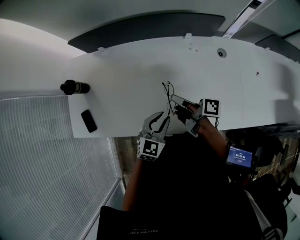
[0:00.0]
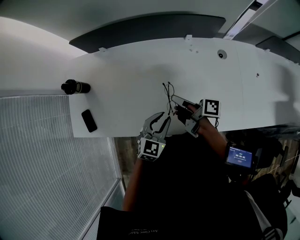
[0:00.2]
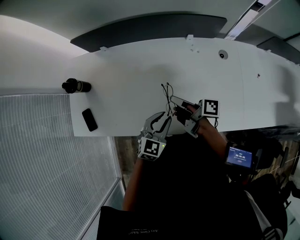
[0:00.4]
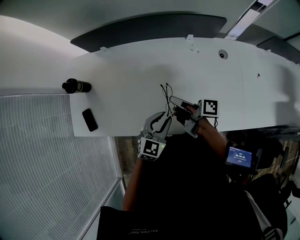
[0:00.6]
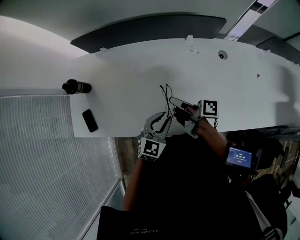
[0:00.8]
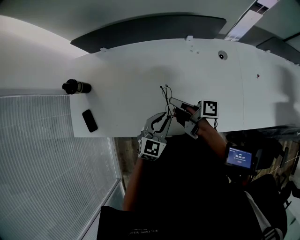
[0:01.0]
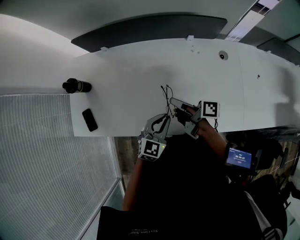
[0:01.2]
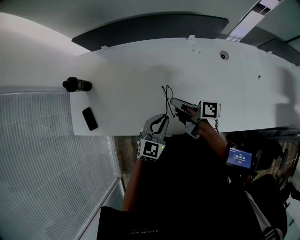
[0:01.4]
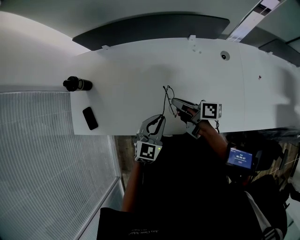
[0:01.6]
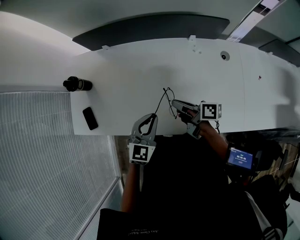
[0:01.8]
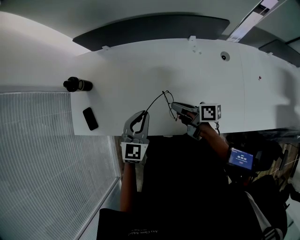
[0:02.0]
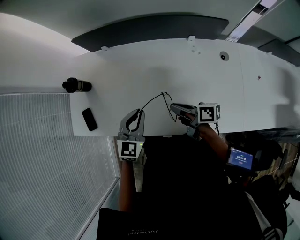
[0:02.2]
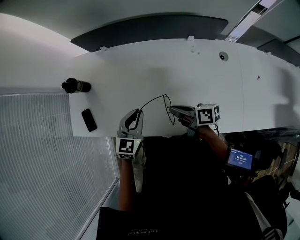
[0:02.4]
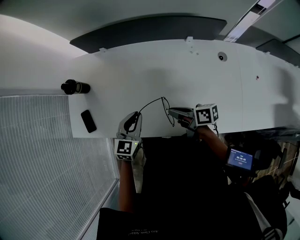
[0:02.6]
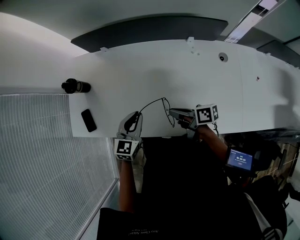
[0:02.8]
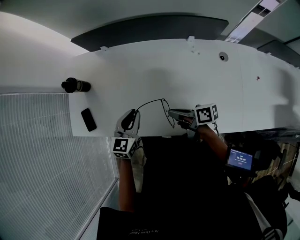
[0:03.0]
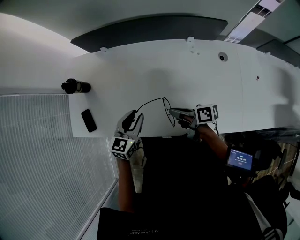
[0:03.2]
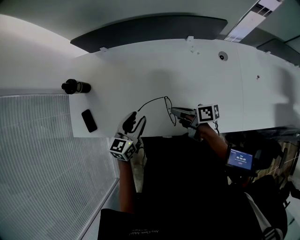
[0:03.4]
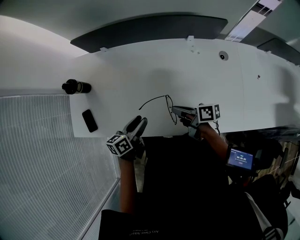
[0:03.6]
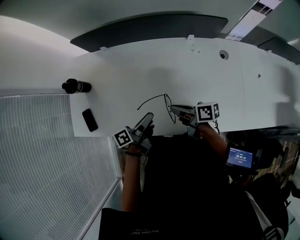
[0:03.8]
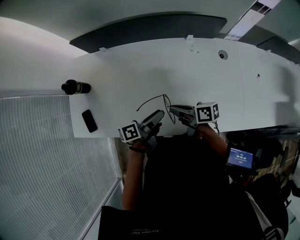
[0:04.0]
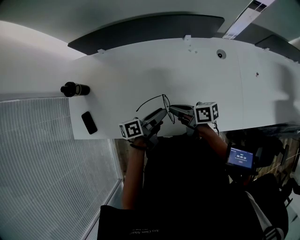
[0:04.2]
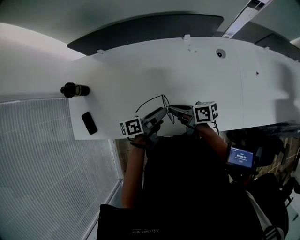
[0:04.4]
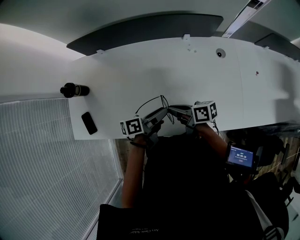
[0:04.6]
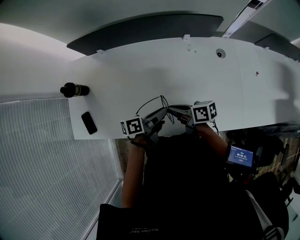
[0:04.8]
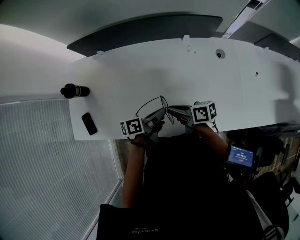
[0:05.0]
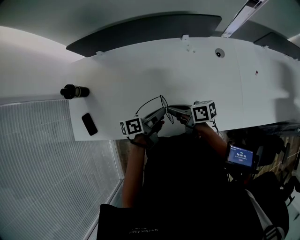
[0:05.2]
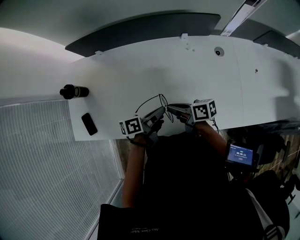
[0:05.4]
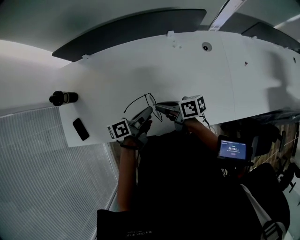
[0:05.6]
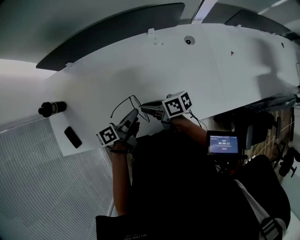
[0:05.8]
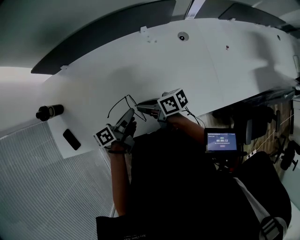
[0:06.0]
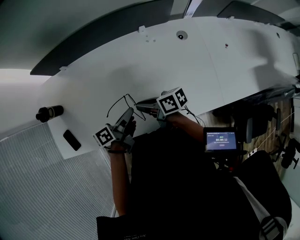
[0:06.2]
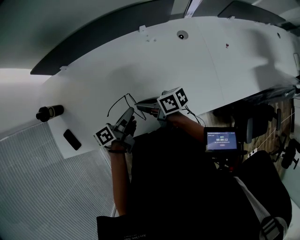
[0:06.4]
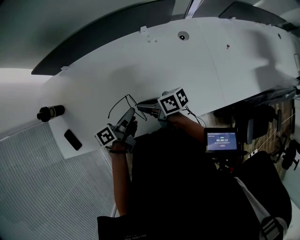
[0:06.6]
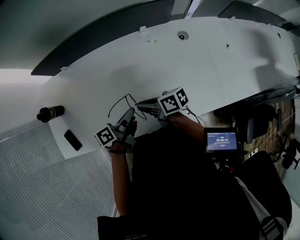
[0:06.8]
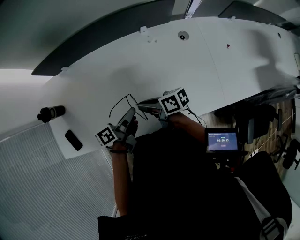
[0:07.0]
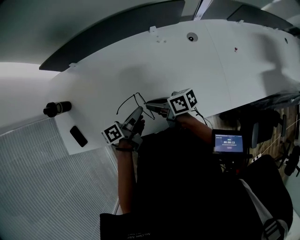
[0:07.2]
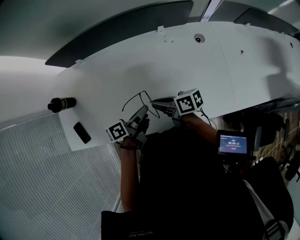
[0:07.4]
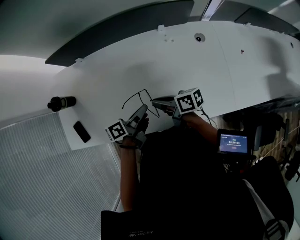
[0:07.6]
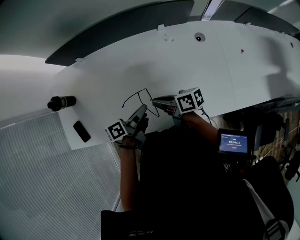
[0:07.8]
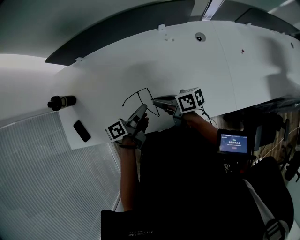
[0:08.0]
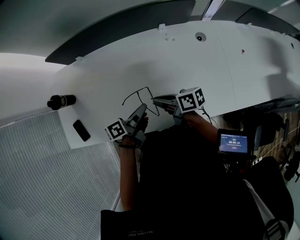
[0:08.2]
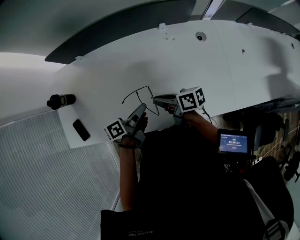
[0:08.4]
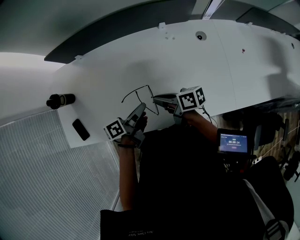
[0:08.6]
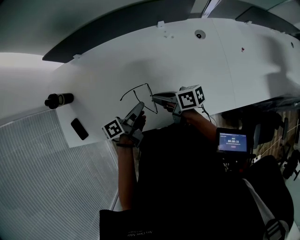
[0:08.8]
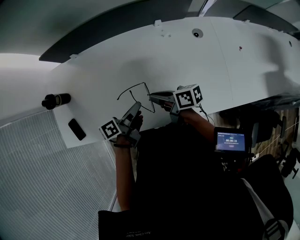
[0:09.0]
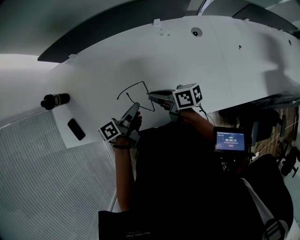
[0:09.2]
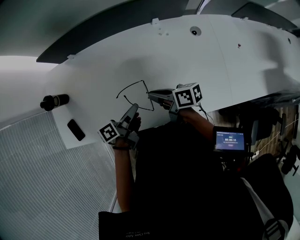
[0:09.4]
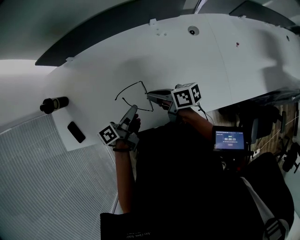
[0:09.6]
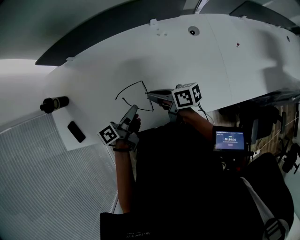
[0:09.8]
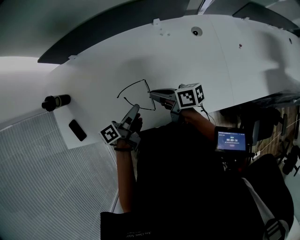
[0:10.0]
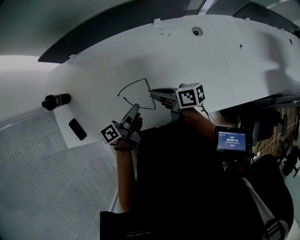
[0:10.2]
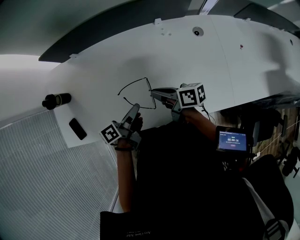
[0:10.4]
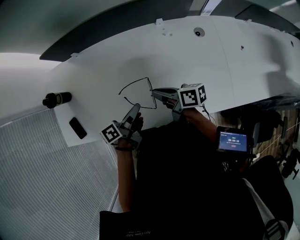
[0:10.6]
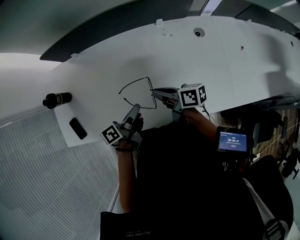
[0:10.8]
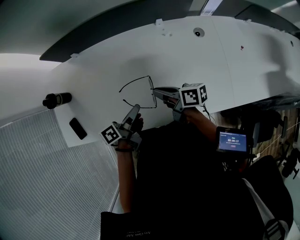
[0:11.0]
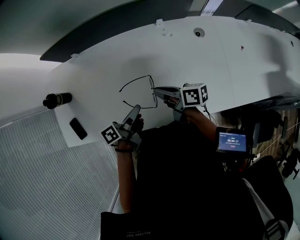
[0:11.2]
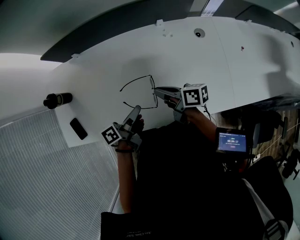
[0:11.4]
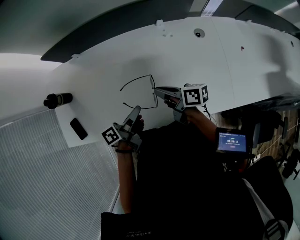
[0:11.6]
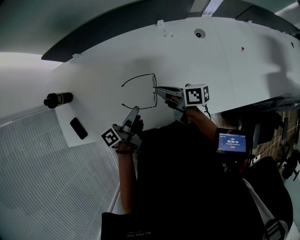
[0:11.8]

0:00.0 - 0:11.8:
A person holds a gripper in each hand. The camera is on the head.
0:01.4 - 0:03.0: The left gripper moves about 15 cm, and swivels about 20 degrees.
0:03.0 - 0:04.4: The left gripper changes place by roughly 15 cm, rotates around the line of its fingers by some 60 degrees, counterclockwise from behind, and opens up.
0:04.4 - 0:06.0: The left gripper closes its fingers.

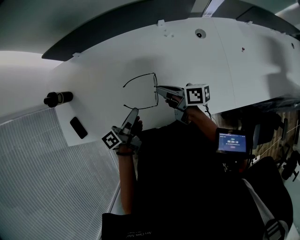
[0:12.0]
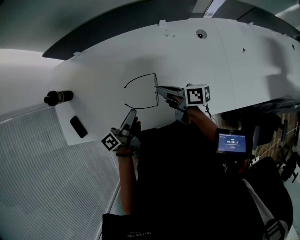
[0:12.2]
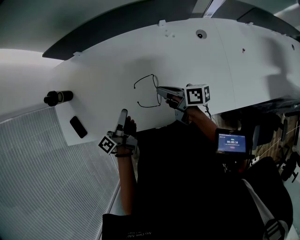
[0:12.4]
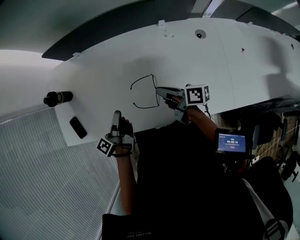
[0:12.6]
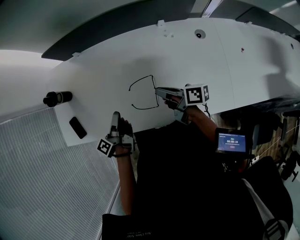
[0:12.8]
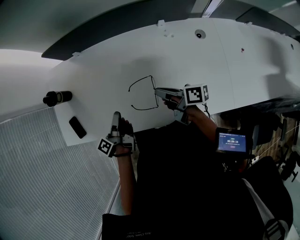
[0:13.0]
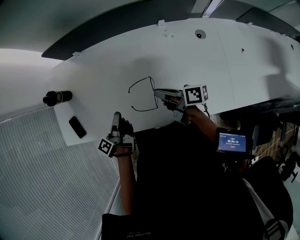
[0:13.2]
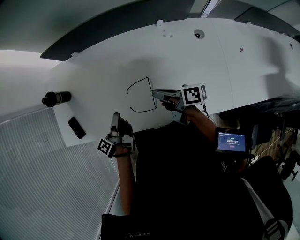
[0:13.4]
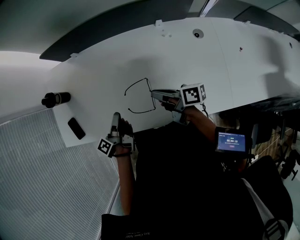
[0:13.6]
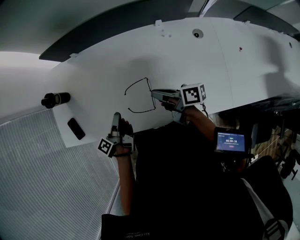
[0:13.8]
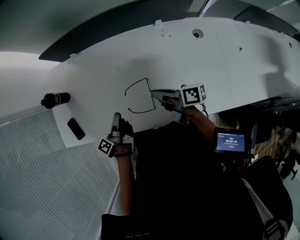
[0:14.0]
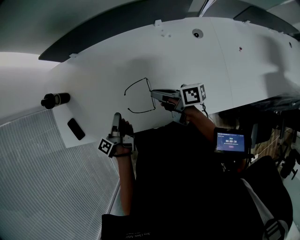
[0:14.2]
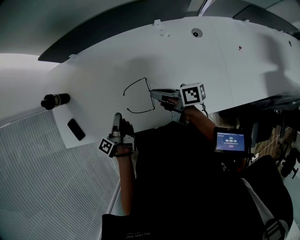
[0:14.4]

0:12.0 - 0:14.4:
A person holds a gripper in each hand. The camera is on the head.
0:12.0 - 0:13.2: The left gripper changes place by some 10 cm, and swivels roughly 30 degrees.

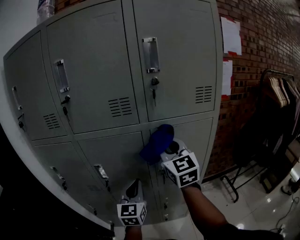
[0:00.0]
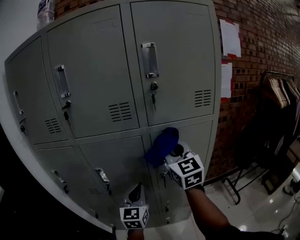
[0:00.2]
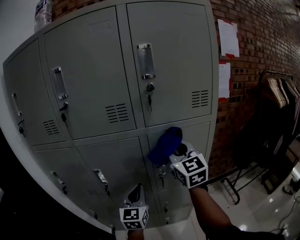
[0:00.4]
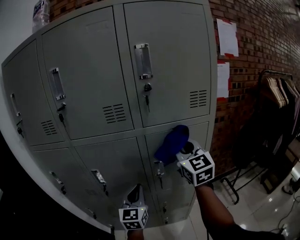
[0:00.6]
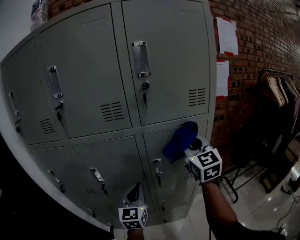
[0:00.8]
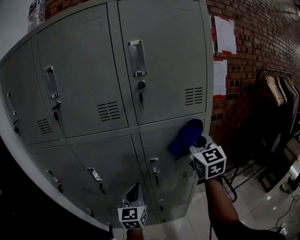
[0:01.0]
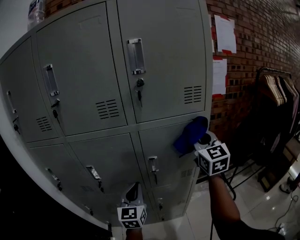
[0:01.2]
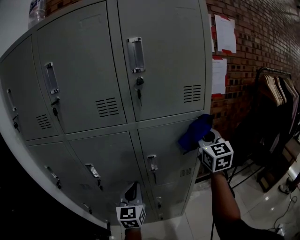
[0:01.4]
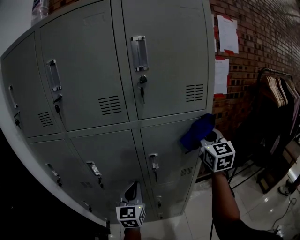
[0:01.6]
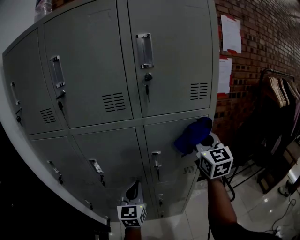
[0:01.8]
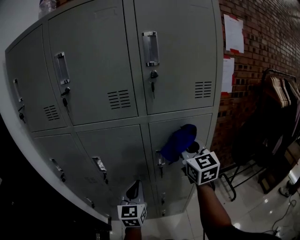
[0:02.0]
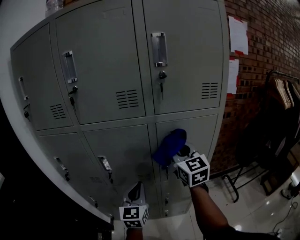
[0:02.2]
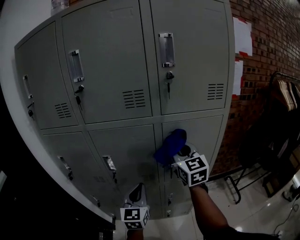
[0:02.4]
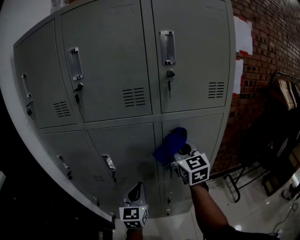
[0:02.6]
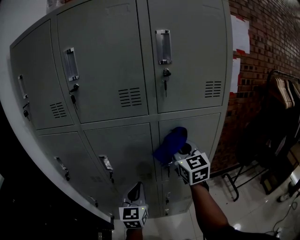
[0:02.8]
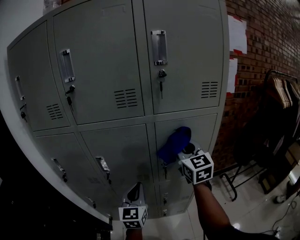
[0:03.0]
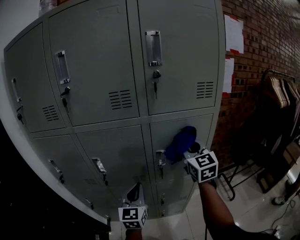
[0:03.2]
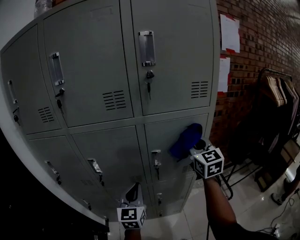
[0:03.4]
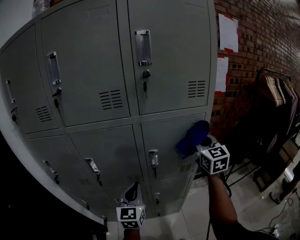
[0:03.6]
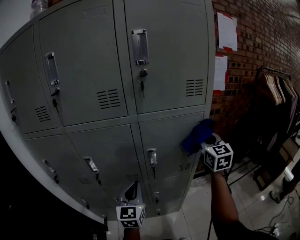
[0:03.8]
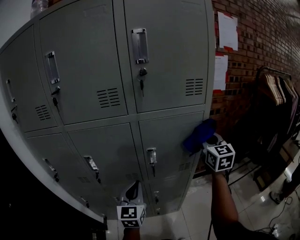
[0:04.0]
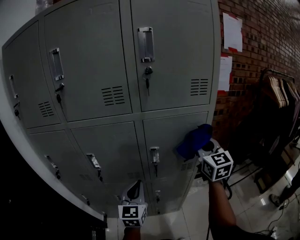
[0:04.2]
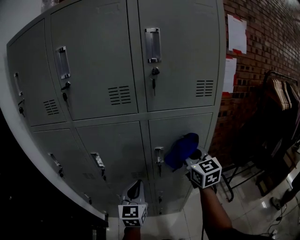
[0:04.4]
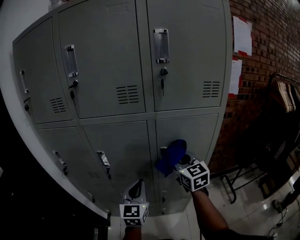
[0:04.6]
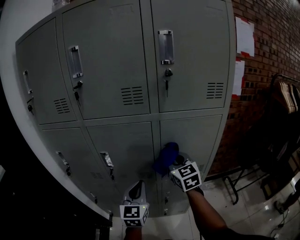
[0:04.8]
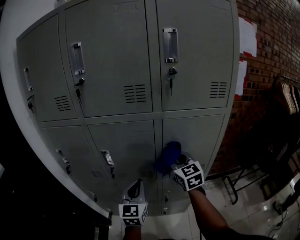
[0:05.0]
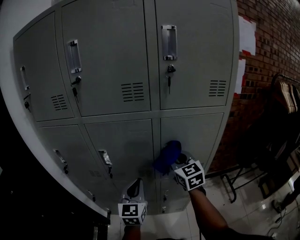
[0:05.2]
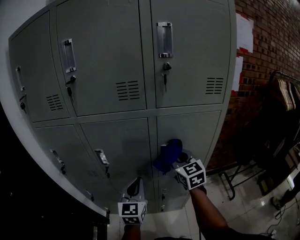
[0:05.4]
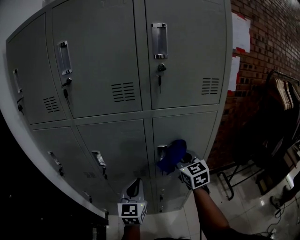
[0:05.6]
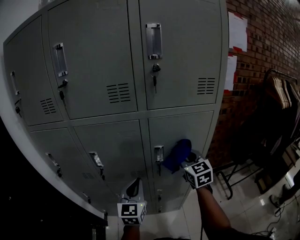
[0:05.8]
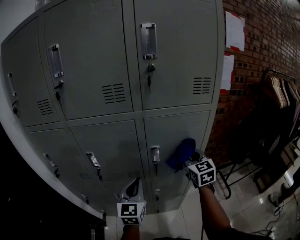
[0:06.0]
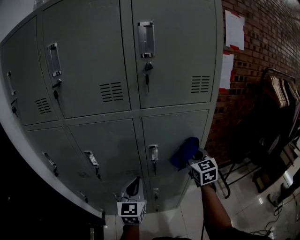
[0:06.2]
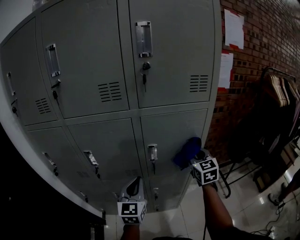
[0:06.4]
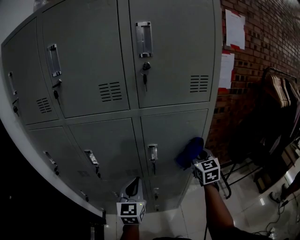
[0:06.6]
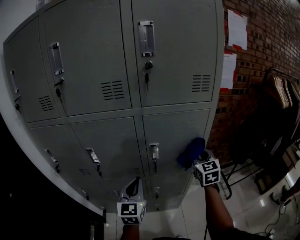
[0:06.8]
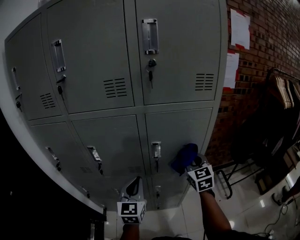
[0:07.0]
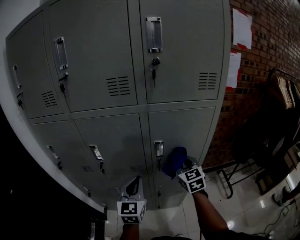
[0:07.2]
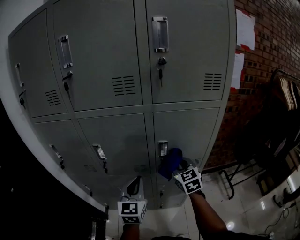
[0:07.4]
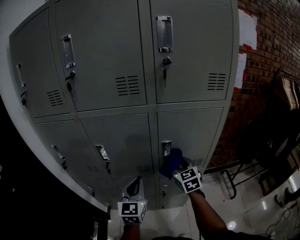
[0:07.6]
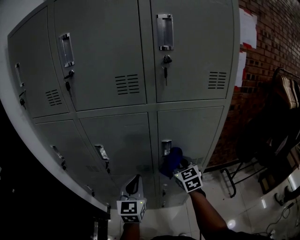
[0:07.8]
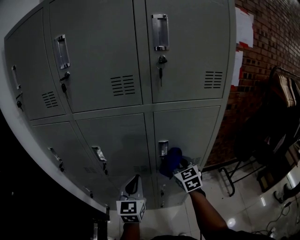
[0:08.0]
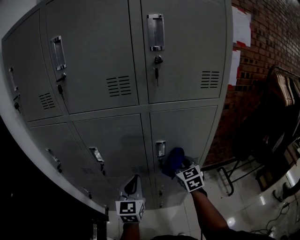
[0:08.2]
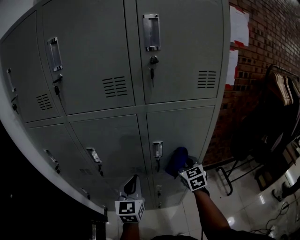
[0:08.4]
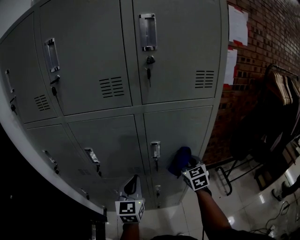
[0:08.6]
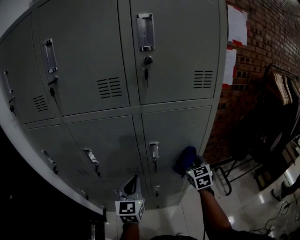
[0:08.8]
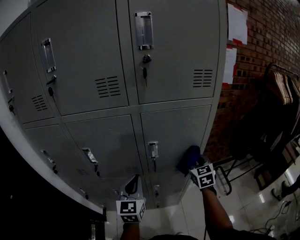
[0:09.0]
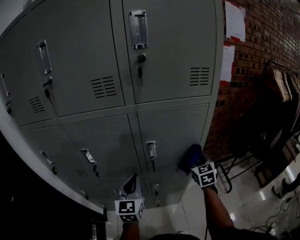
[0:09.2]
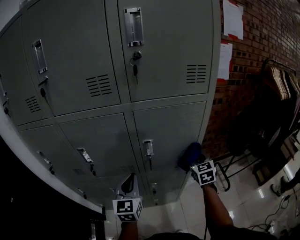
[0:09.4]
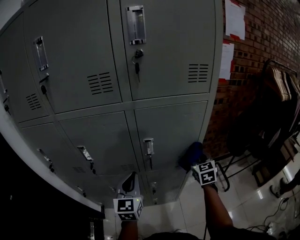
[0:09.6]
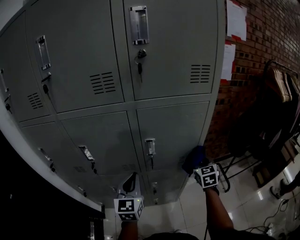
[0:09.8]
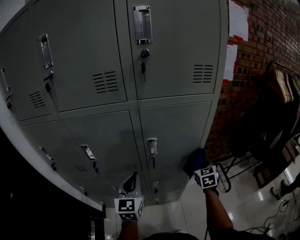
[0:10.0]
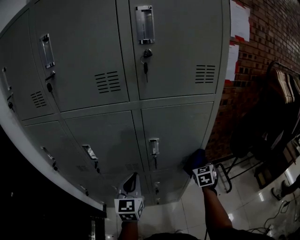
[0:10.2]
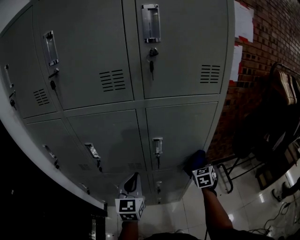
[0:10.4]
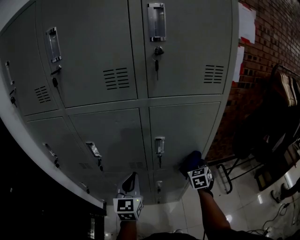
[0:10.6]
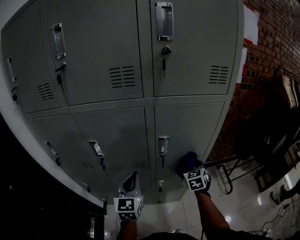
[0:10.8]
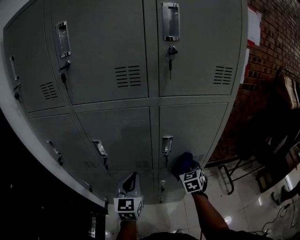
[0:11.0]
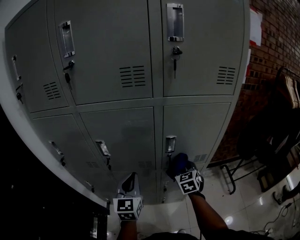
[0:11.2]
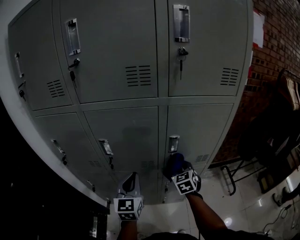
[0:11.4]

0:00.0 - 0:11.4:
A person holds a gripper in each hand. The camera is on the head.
0:00.0 - 0:01.4: The right gripper travels to the right by about 20 cm.
0:01.4 - 0:02.8: The left gripper travels to the left by some 5 cm. The right gripper is displaced to the left by some 20 cm.
0:02.8 - 0:04.2: The left gripper moves to the right, approximately 5 cm; the right gripper heads to the right, covering about 15 cm.
0:04.2 - 0:05.6: The right gripper heads to the left and downward, covering roughly 15 cm.
0:05.6 - 0:07.2: The right gripper goes about 5 cm downward, and moves roughly 15 cm to the right and comes back.
0:07.2 - 0:08.6: The right gripper ends up about 5 cm from where it was.
0:08.6 - 0:10.0: The right gripper shifts roughly 10 cm to the right and downward.
0:10.0 - 0:11.4: The left gripper shifts roughly 10 cm to the left, while the right gripper is displaced to the left by some 20 cm.
